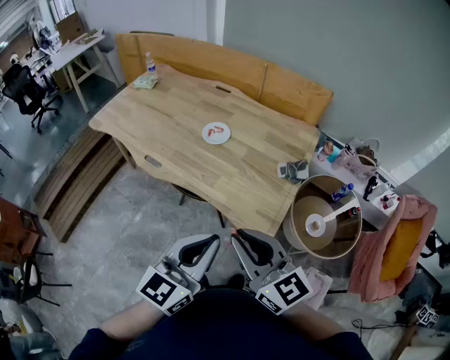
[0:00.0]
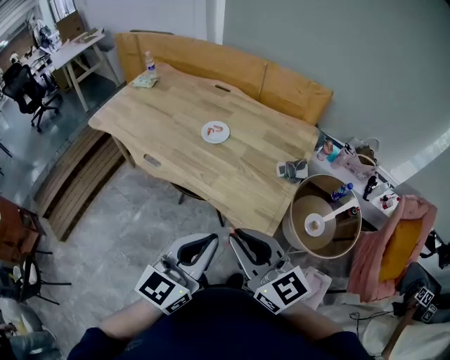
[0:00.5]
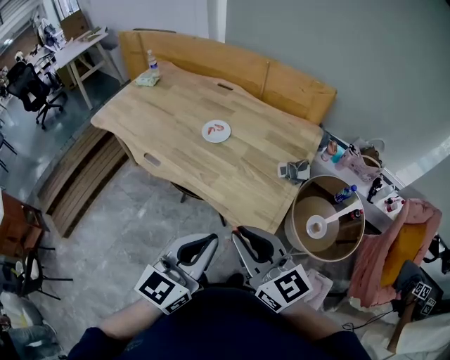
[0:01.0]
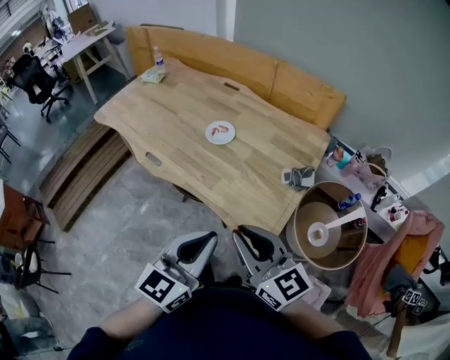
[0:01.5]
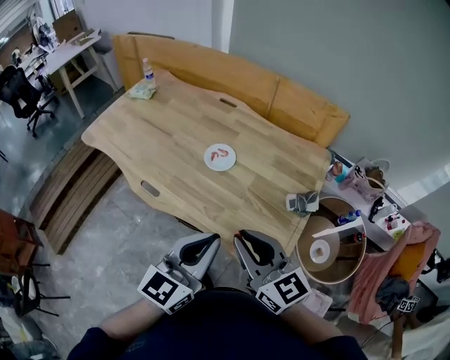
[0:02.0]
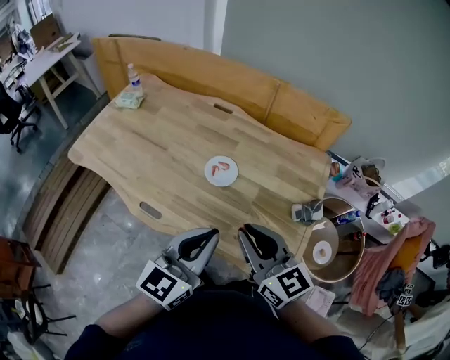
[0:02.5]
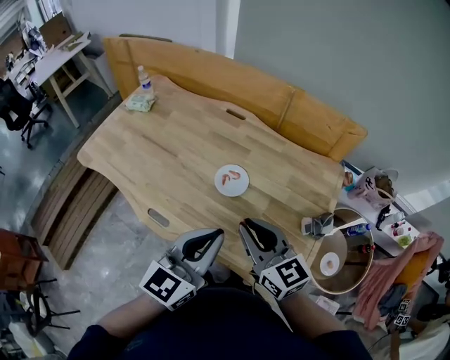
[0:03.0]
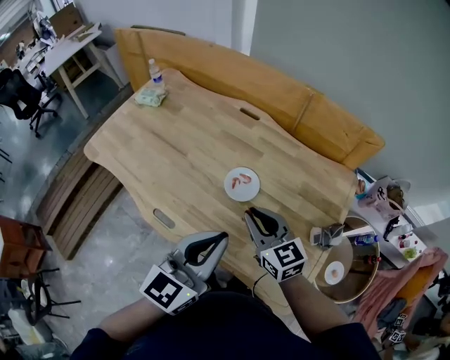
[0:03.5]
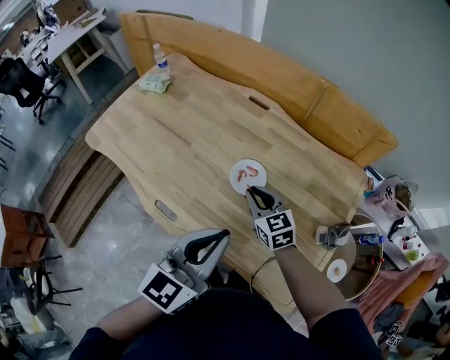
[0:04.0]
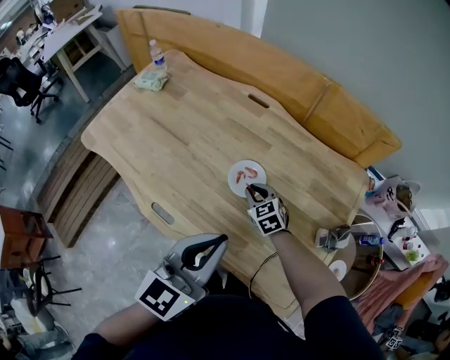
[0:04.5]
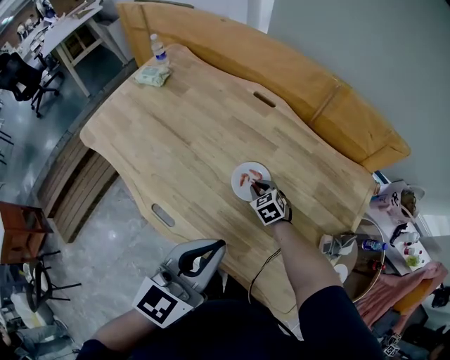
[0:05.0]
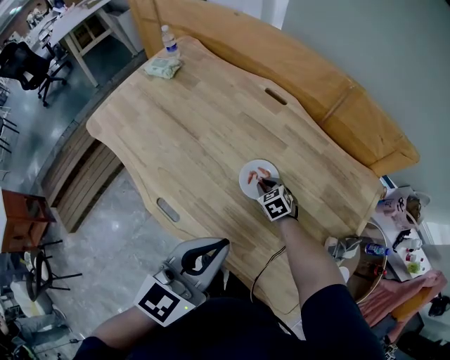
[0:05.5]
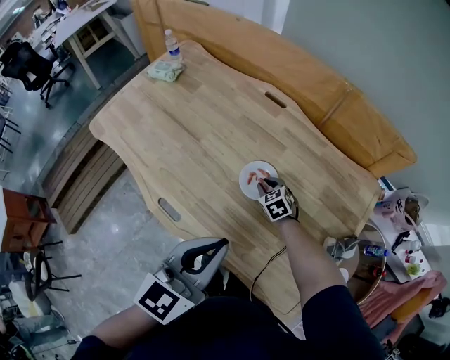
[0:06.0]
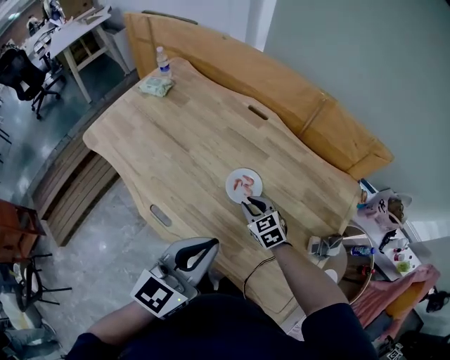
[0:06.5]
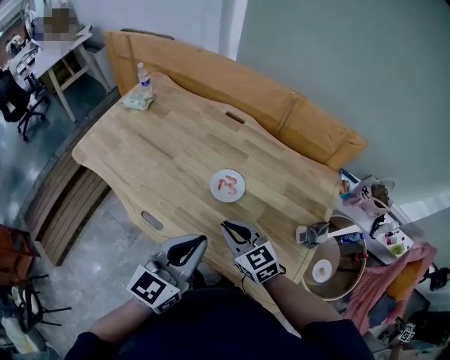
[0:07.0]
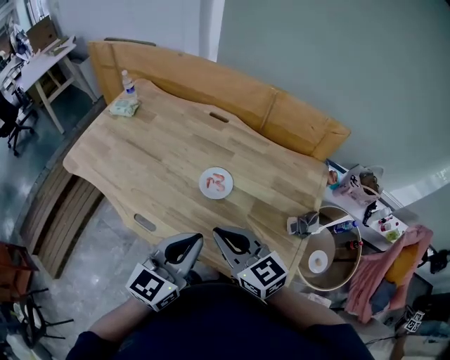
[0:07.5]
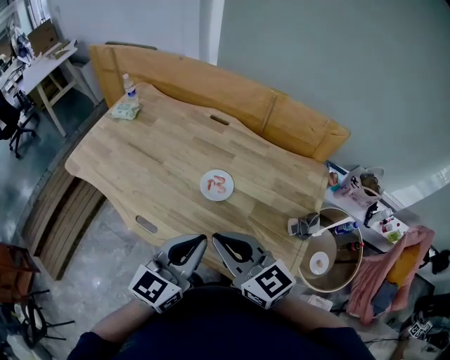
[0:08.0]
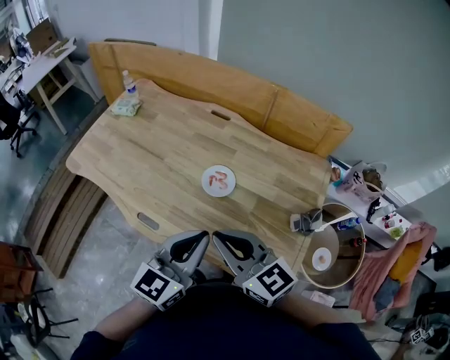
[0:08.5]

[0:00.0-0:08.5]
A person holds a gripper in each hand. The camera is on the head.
0:00.0 to 0:02.0: The grippers both shift forward by roughly 15 cm.
0:02.0 to 0:04.0: The right gripper travels forward and downward by some 35 cm, and swivels approximately 20 degrees. Meanwhile the left gripper shifts approximately 20 cm forward and to the left.
0:04.0 to 0:06.5: The right gripper heads downward, covering some 10 cm.
0:06.5 to 0:08.5: The left gripper moves roughly 5 cm; the right gripper is displaced upward and backward by about 35 cm, and points its fingers roughly 30 degrees further upward.

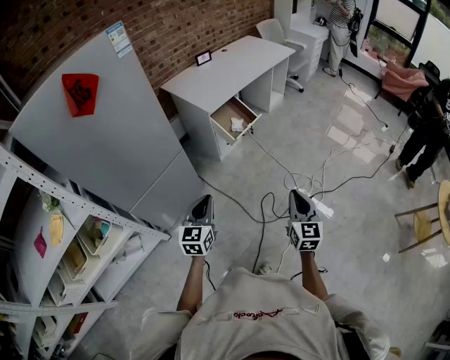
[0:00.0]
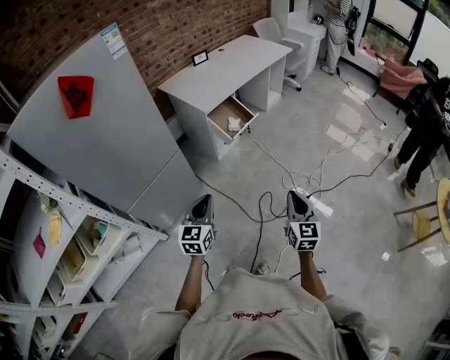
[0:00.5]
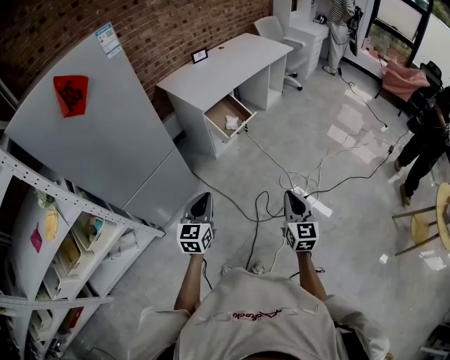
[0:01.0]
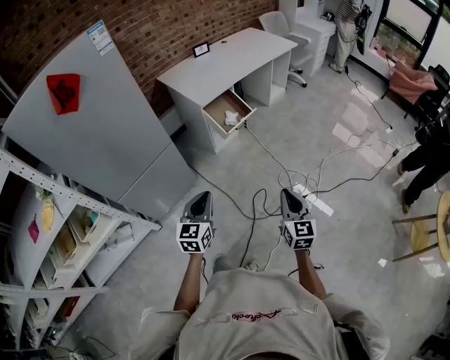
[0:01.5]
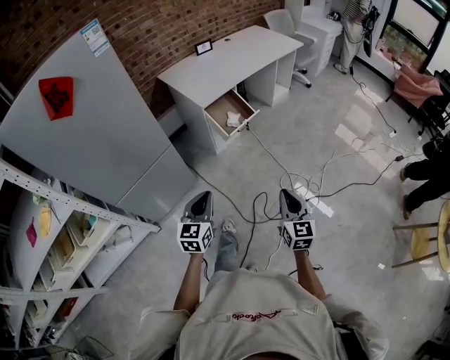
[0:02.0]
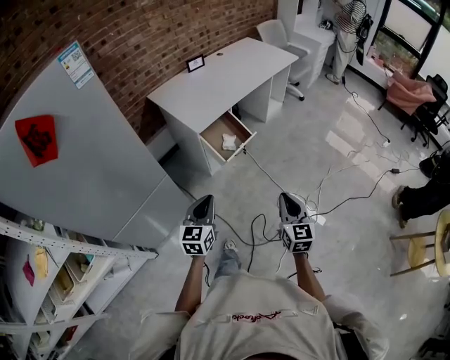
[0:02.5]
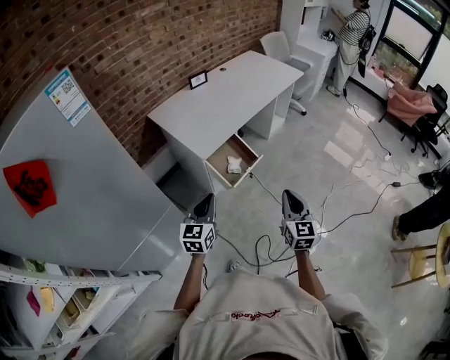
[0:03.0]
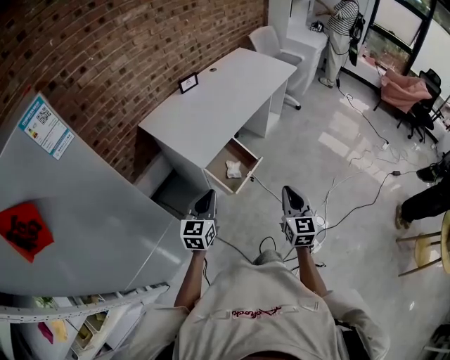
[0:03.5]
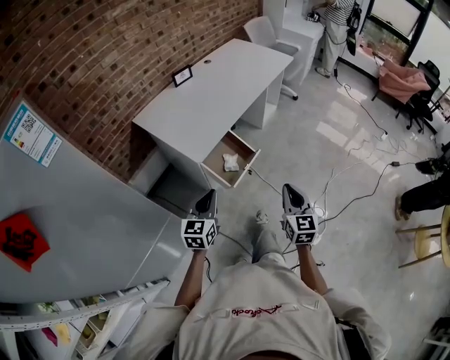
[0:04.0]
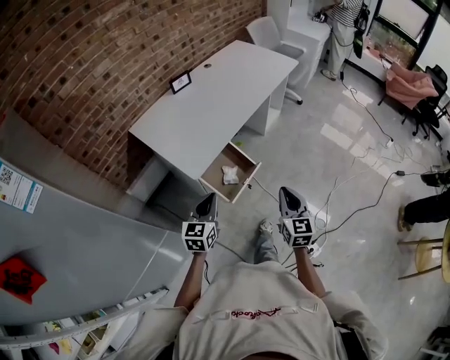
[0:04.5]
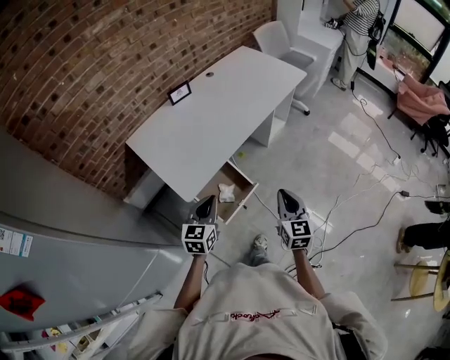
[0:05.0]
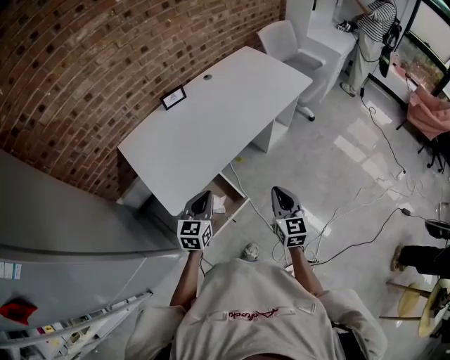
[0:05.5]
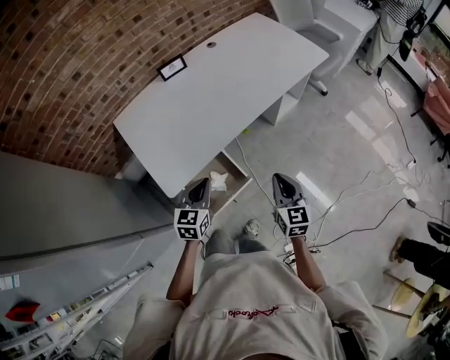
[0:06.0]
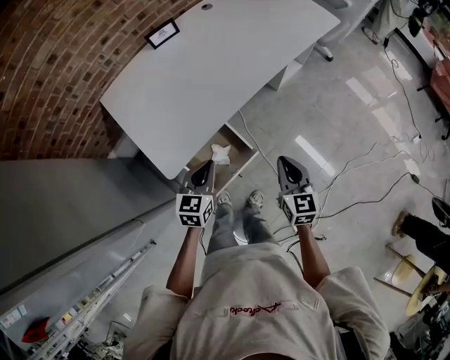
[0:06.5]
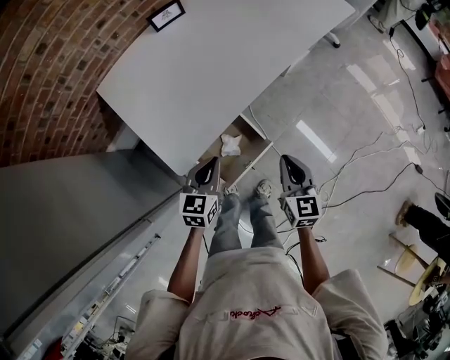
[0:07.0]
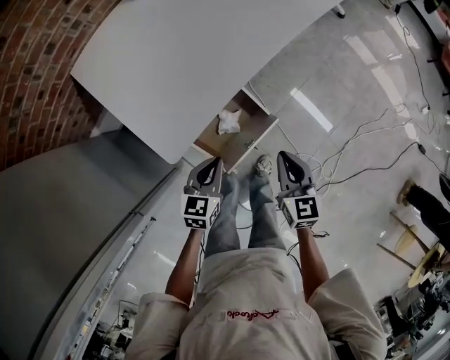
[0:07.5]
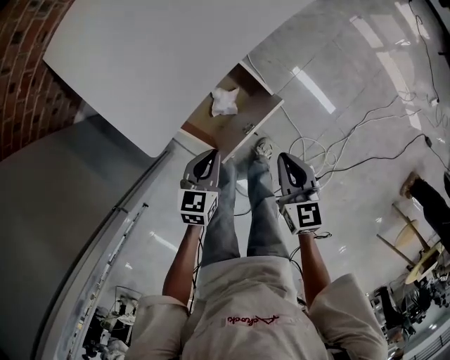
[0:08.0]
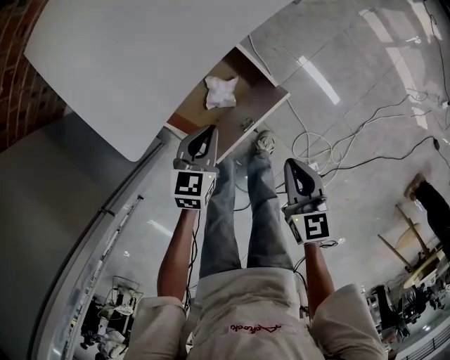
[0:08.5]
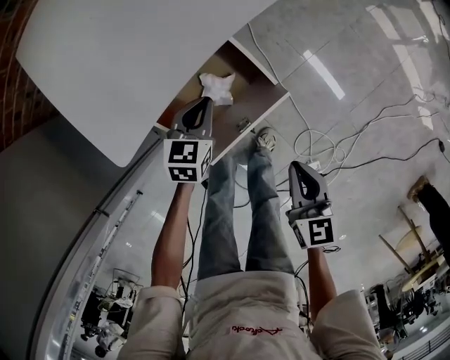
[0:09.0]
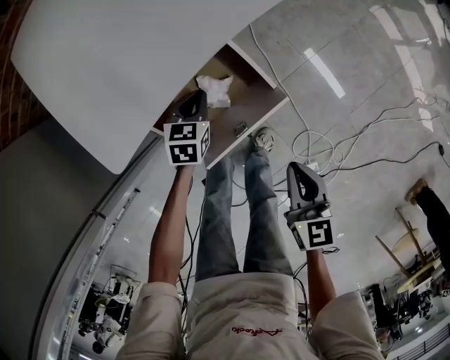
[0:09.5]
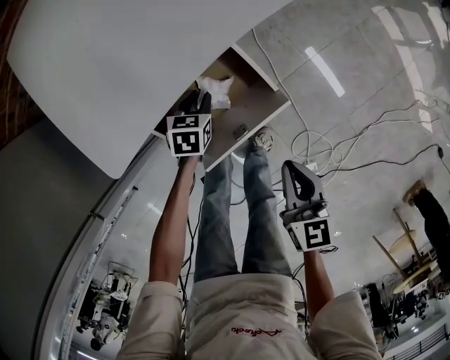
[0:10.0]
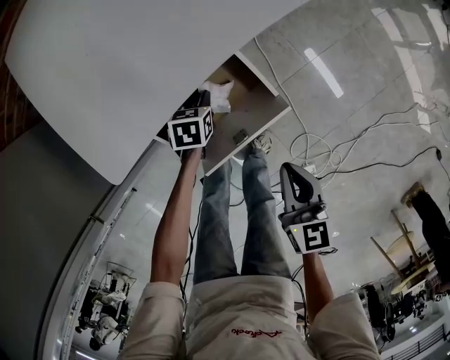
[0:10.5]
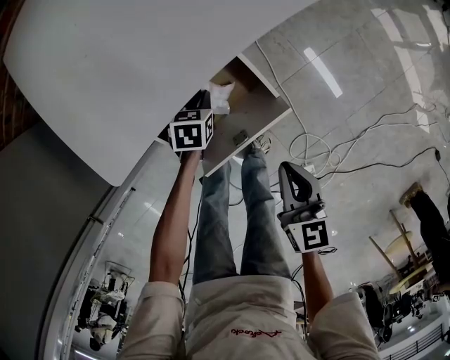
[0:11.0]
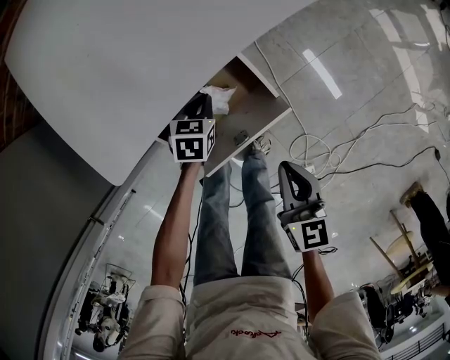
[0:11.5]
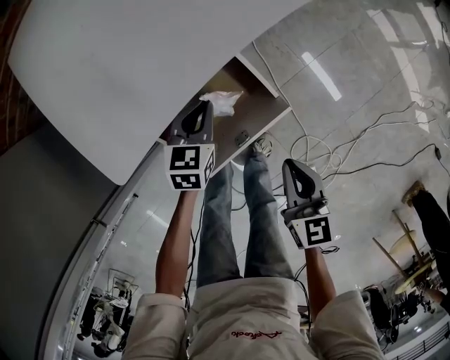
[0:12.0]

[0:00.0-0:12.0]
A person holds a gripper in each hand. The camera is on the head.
0:00.0 to 0:02.0: The left gripper goes some 10 cm to the right and forward. The right gripper shifts approximately 5 cm forward.
0:02.0 to 0:04.0: The grippers both shift forward by about 35 cm.
0:04.0 to 0:06.0: Both grippers travel together forward, approximately 35 cm.
0:06.0 to 0:08.0: The left gripper goes approximately 25 cm downward, and swivels approximately 20 degrees; the right gripper moves downward, to the left and backward, approximately 25 cm.
0:08.0 to 0:10.0: The right gripper moves downward, approximately 5 cm; the left gripper heads downward and forward, covering approximately 20 cm, swivels approximately 20 degrees, and opens.
0:10.0 to 0:12.0: The left gripper heads upward, covering some 10 cm, and closes up.

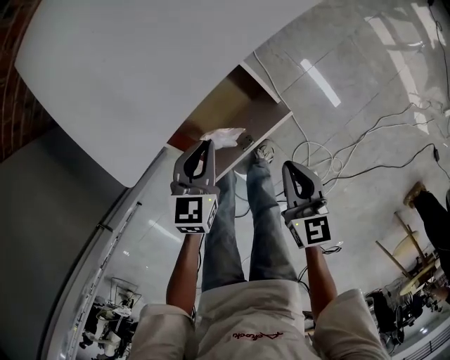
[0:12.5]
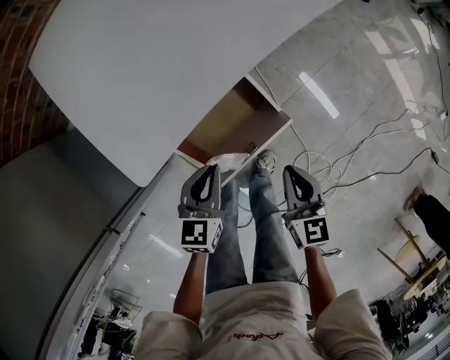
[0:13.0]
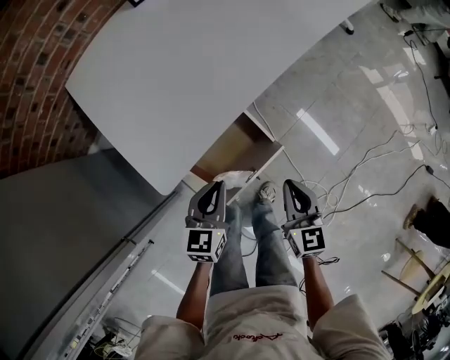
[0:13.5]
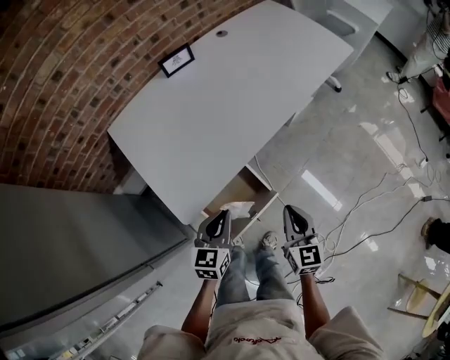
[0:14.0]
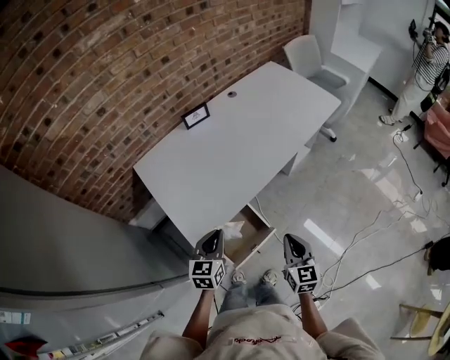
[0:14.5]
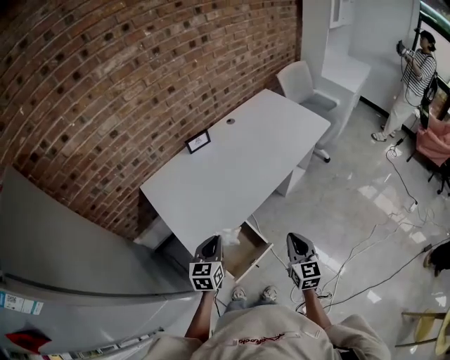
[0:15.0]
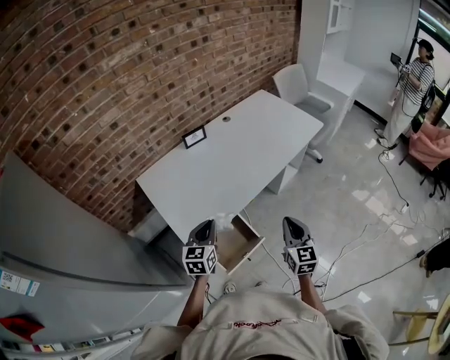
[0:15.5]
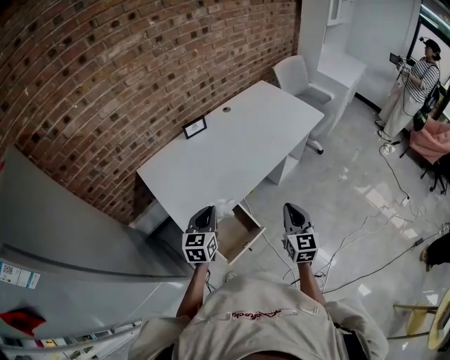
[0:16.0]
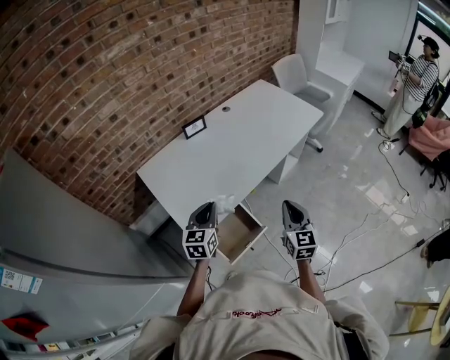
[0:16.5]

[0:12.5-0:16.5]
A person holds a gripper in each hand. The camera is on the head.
0:12.5 to 0:14.5: Both grippers move upward, approximately 25 cm.
0:14.5 to 0:16.5: Both grippers move upward, roughly 10 cm.

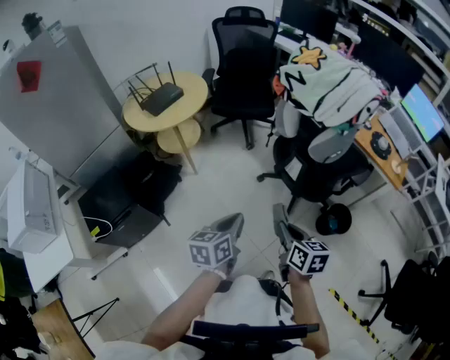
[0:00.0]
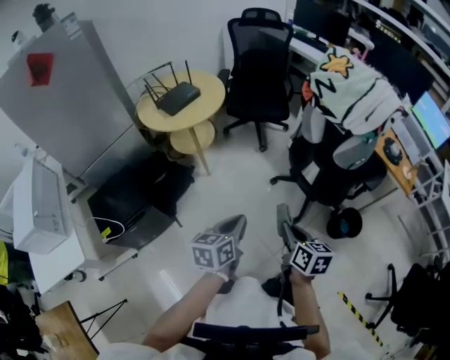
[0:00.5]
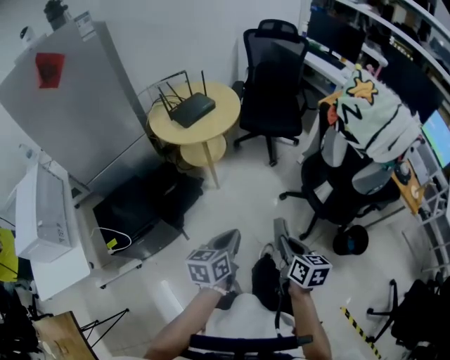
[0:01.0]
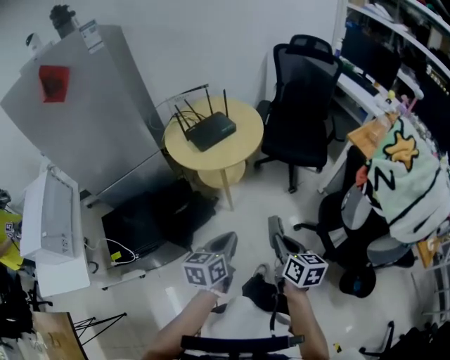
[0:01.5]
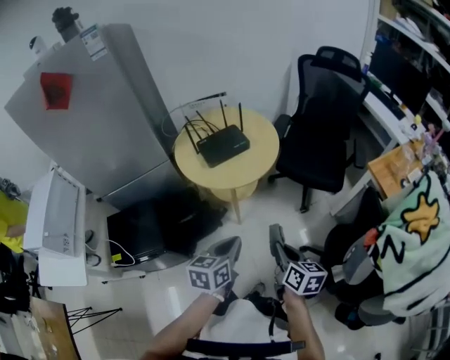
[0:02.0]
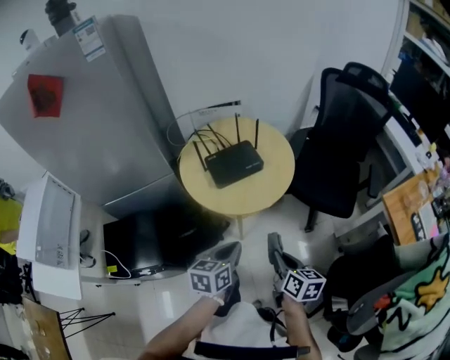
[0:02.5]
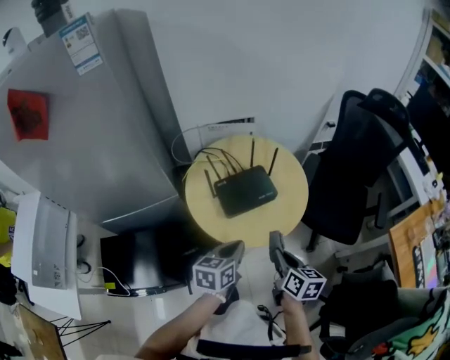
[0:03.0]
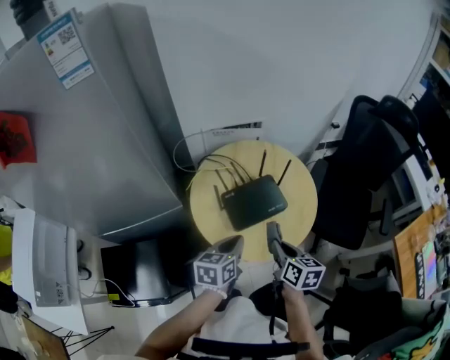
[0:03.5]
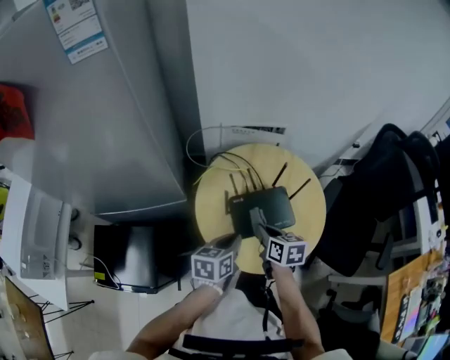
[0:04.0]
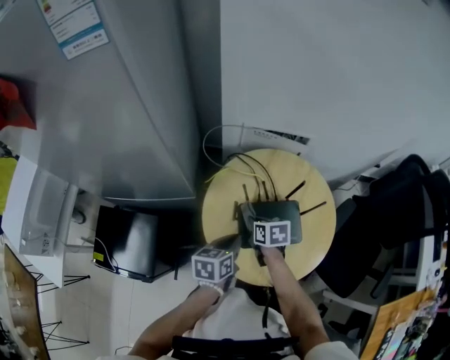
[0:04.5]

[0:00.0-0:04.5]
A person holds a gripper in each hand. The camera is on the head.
0:00.0 to 0:02.0: The two grippers go approximately 40 cm forward and to the left. The left gripper turns by some 20 degrees. Meanwhile the right gripper turns by about 20 degrees.
0:02.0 to 0:04.5: The pair of grippers is taken roughly 60 cm. The left gripper rotates roughly 30 degrees. The right gripper swivels approximately 50 degrees.
